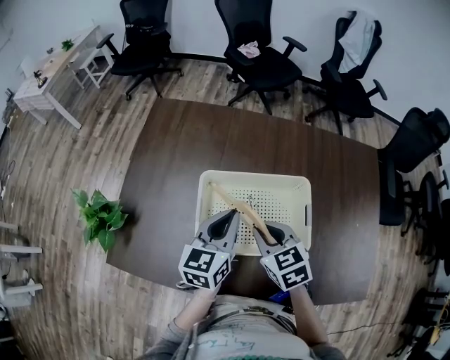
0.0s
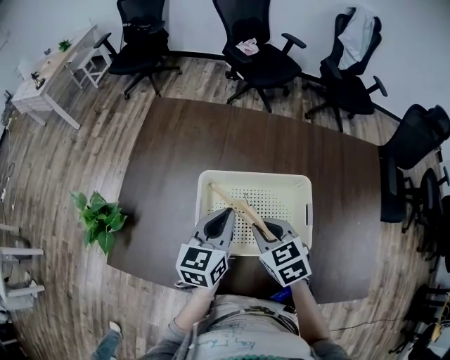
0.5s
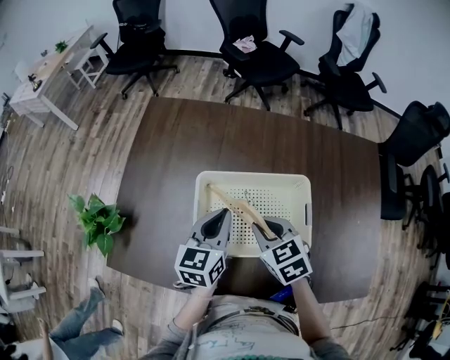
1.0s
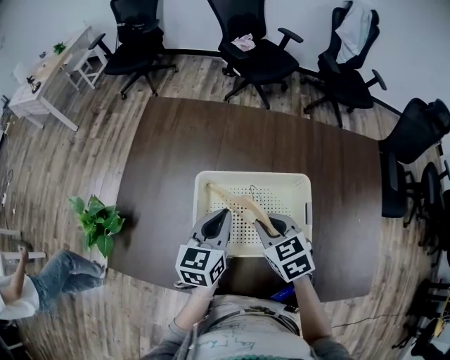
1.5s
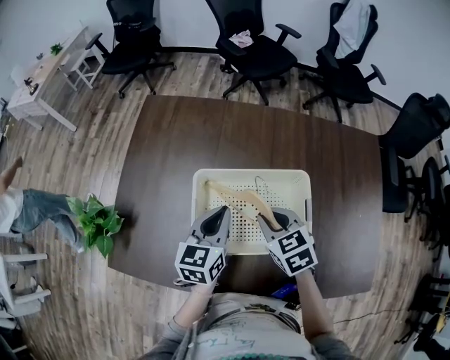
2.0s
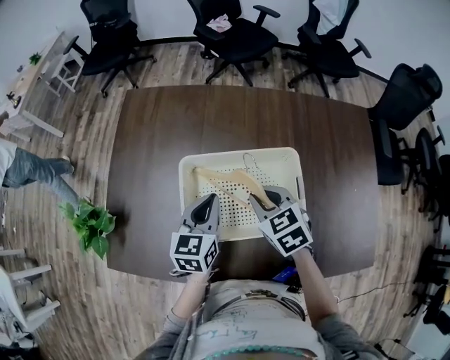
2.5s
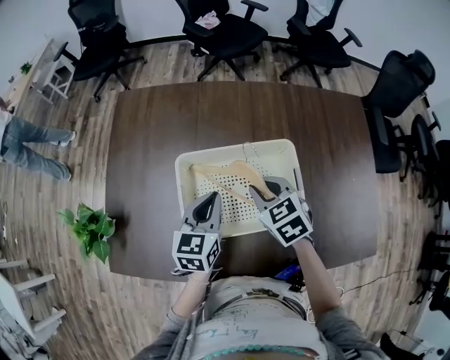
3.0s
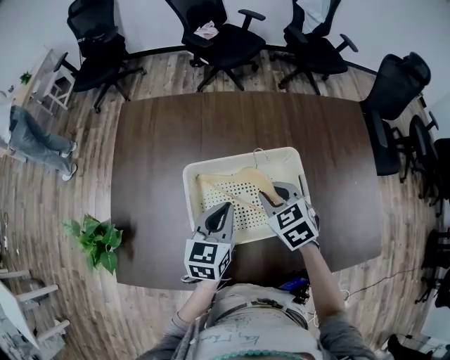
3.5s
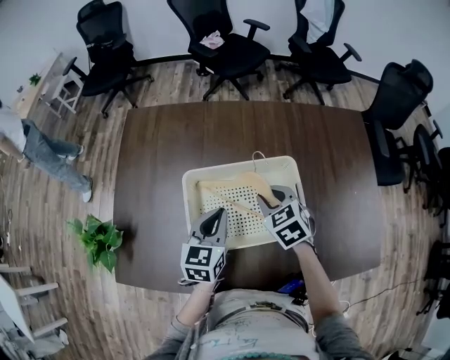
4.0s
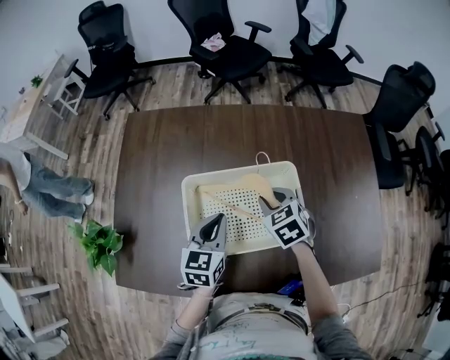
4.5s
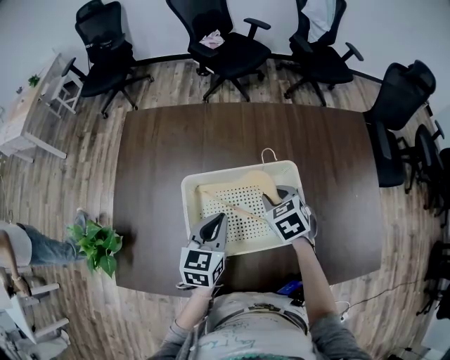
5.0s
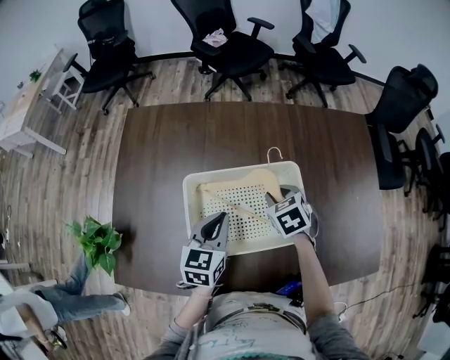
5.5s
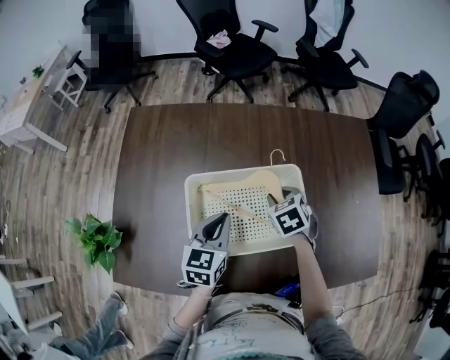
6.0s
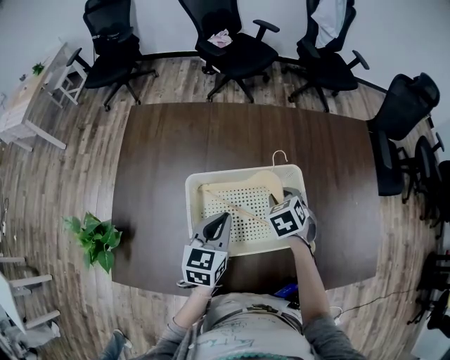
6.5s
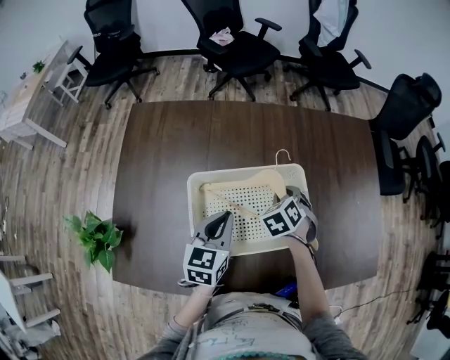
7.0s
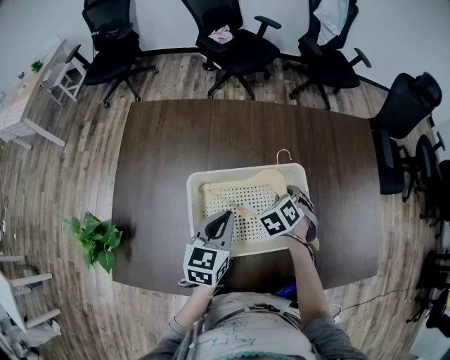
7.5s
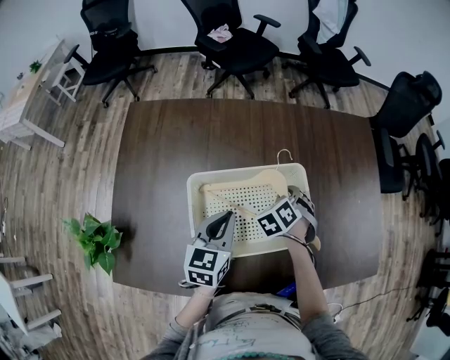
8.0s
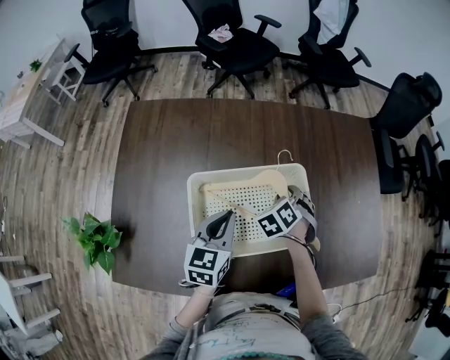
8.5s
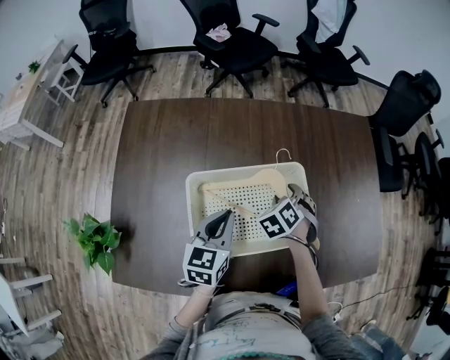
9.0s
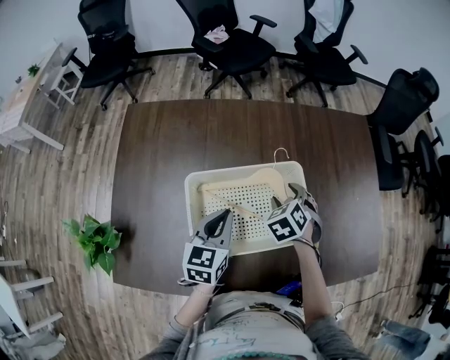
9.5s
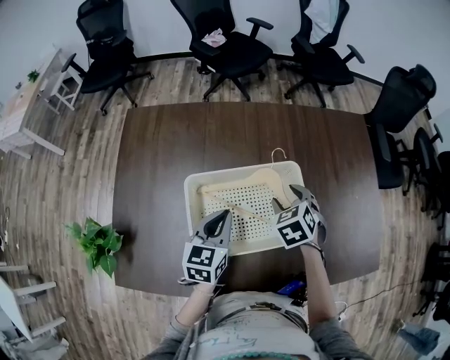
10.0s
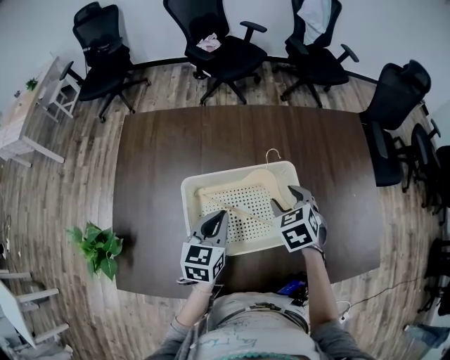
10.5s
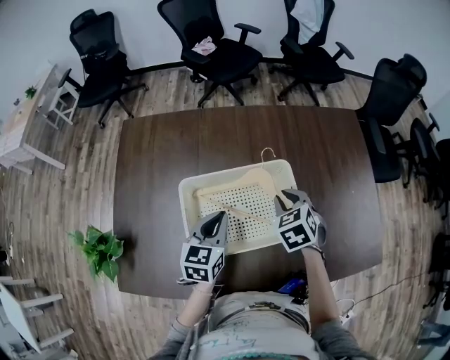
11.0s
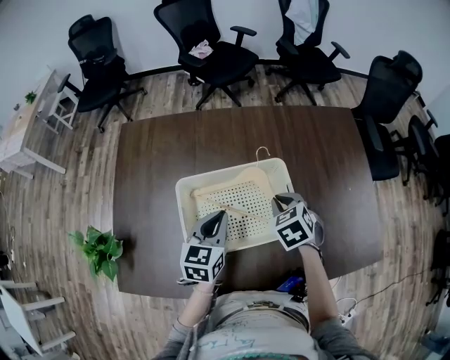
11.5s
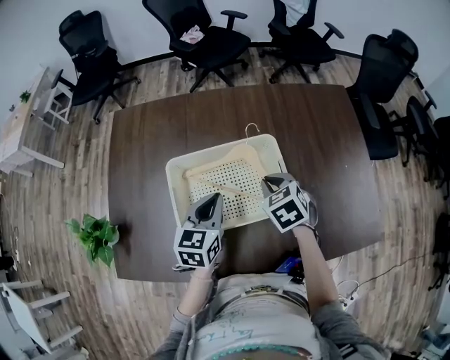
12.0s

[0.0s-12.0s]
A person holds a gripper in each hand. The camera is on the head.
0.0s to 2.0s: The grippers make only small movements.
2.0s to 4.0s: The grippers make only small movements.
4.0s to 6.0s: The right gripper ends up approximately 5 cm from where it was.
6.0s to 8.0s: The right gripper rotates roughly 30 degrees.
8.0s to 10.0s: The right gripper moves upward, some 5 cm, swivels about 20 degrees, and opens.
10.0s to 12.0s: The right gripper changes place by some 5 cm, and closes up.

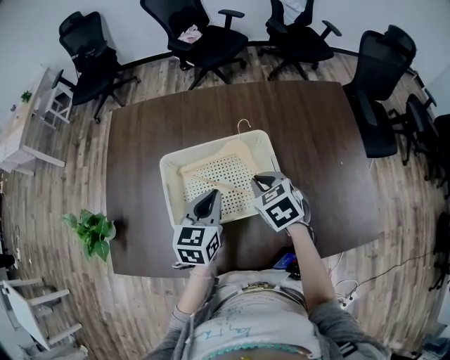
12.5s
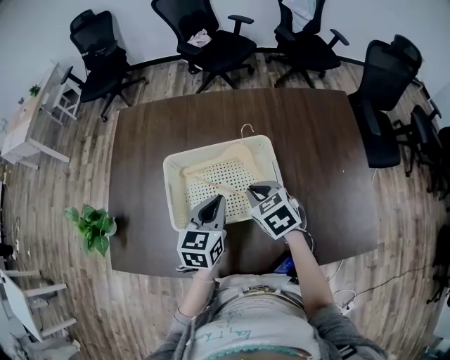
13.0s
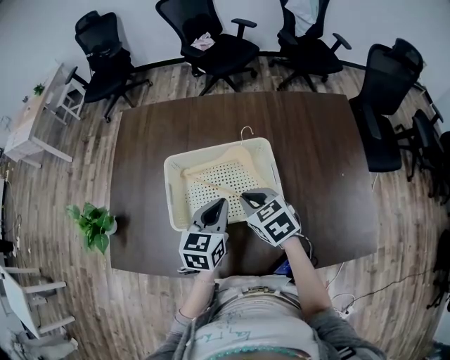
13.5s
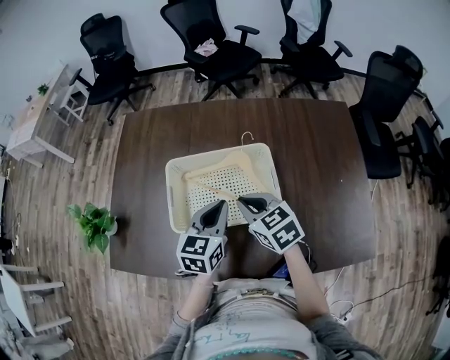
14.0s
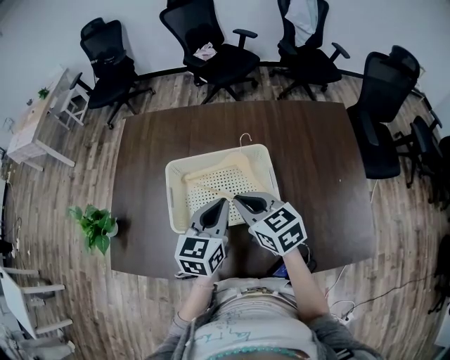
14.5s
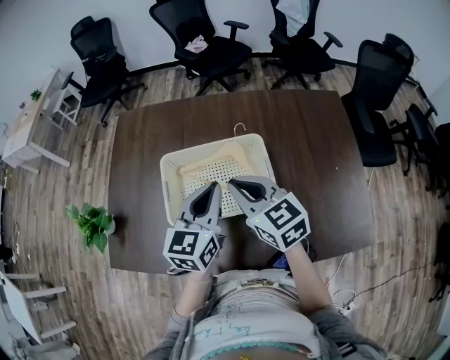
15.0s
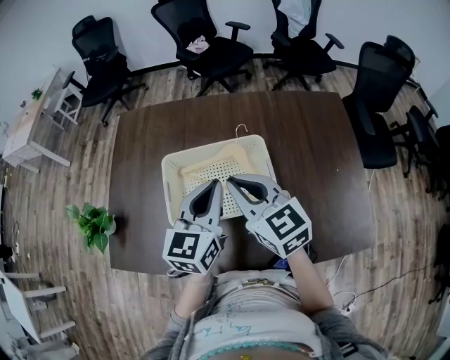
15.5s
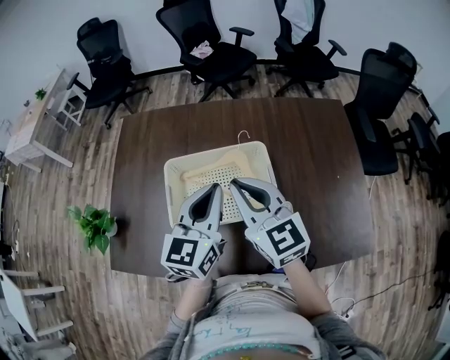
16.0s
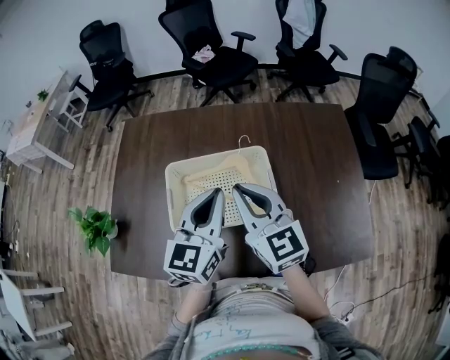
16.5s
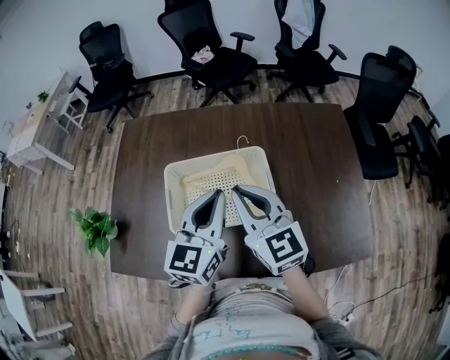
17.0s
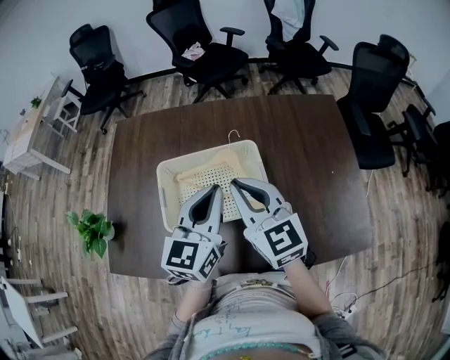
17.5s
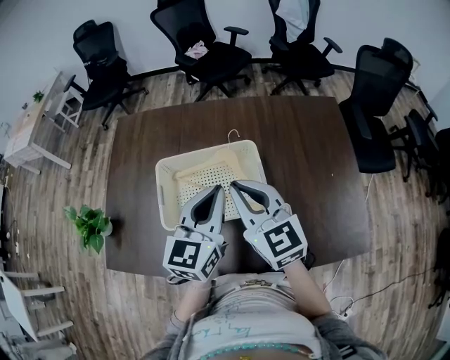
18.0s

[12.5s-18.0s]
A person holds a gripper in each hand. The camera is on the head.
12.5s to 14.5s: Both grippers travel together upward, approximately 5 cm. The right gripper changes its angle by approximately 30 degrees.
14.5s to 16.0s: The grippers both shift upward by some 10 cm. The right gripper swivels about 30 degrees.
16.0s to 18.0s: There are only small adjustments of the grippers.

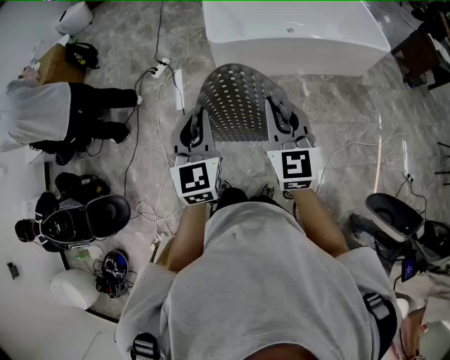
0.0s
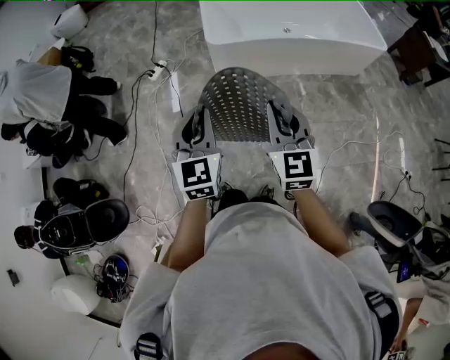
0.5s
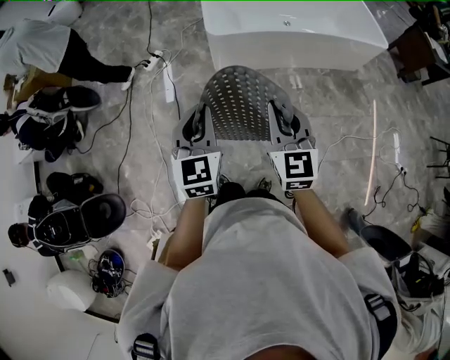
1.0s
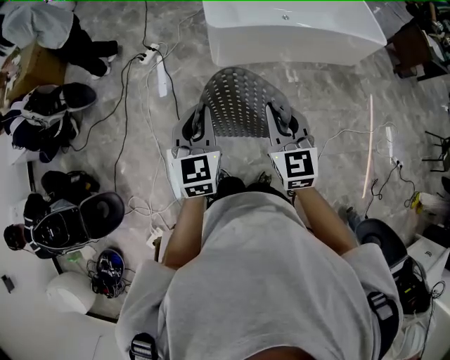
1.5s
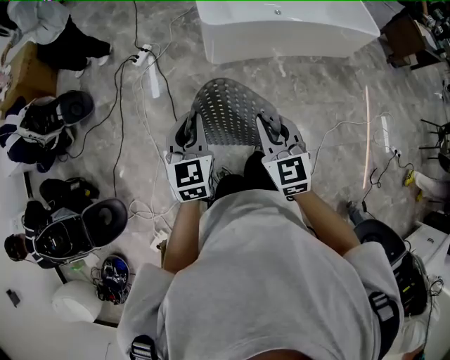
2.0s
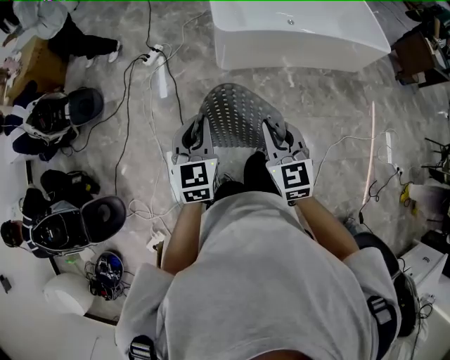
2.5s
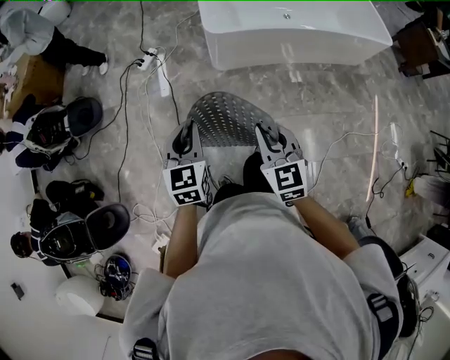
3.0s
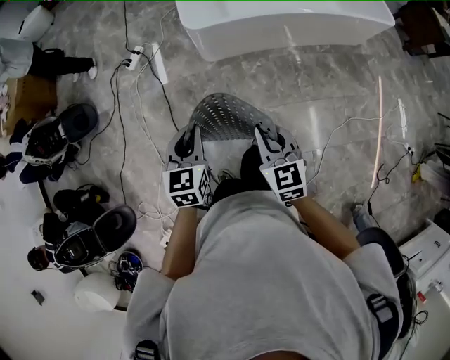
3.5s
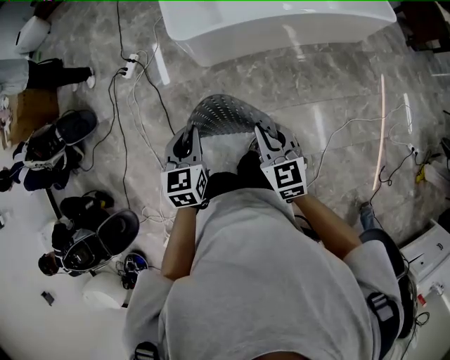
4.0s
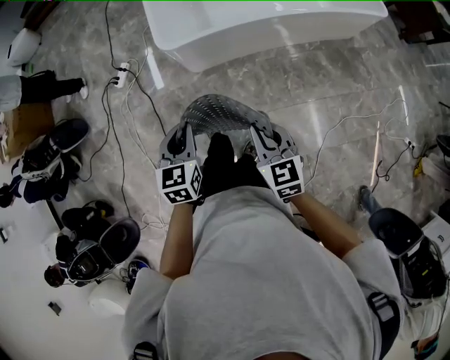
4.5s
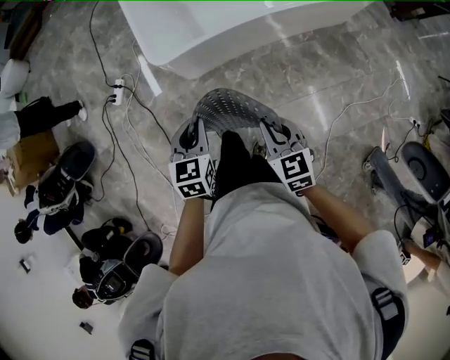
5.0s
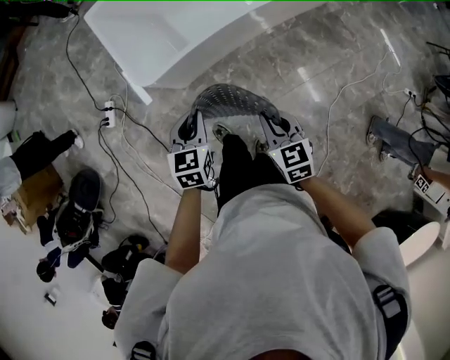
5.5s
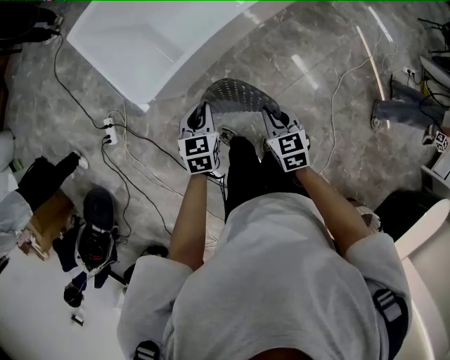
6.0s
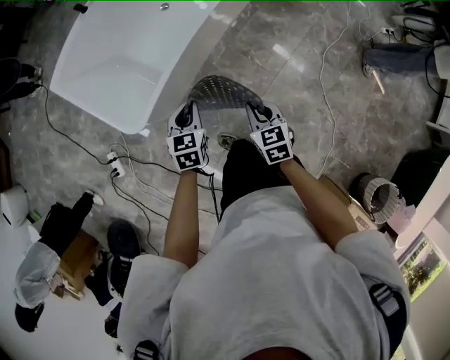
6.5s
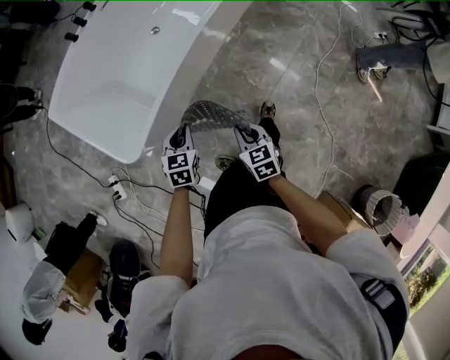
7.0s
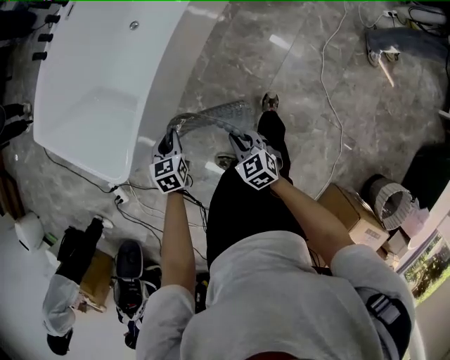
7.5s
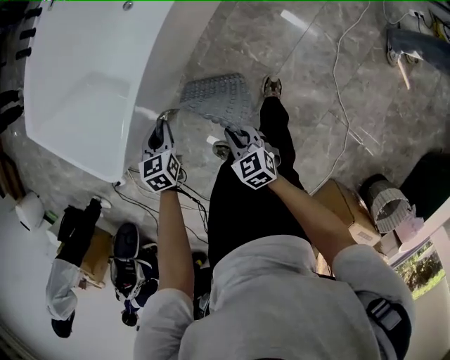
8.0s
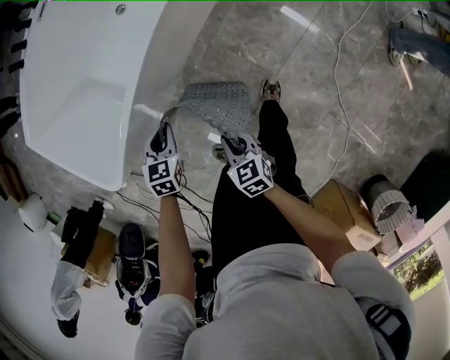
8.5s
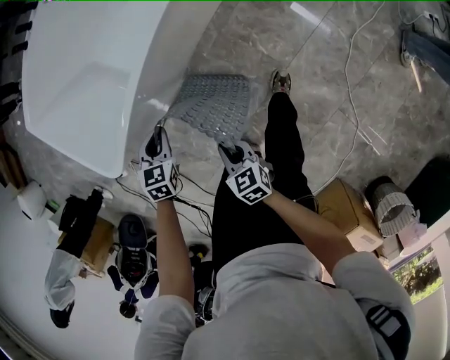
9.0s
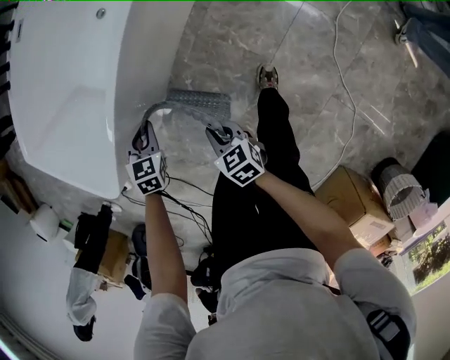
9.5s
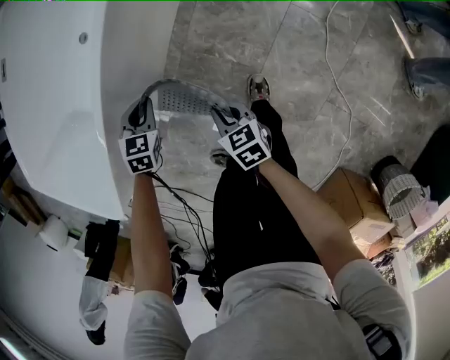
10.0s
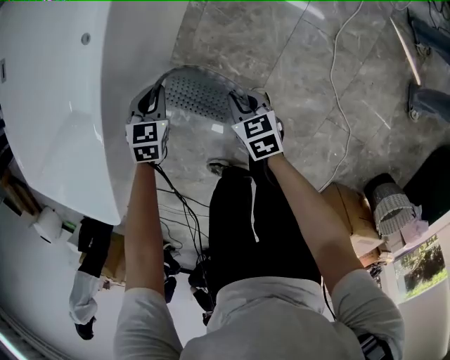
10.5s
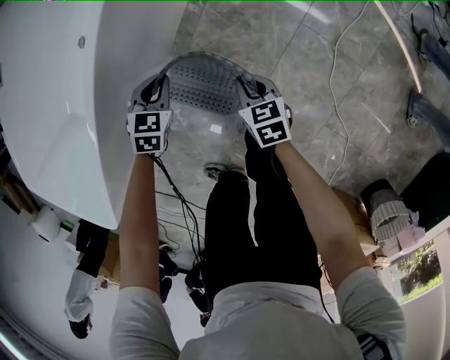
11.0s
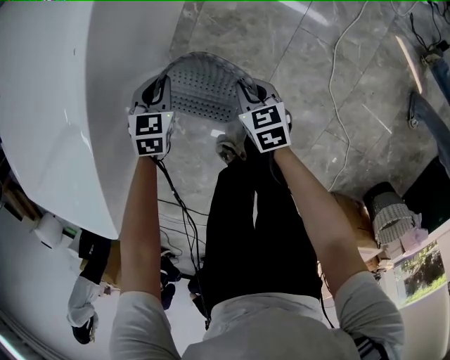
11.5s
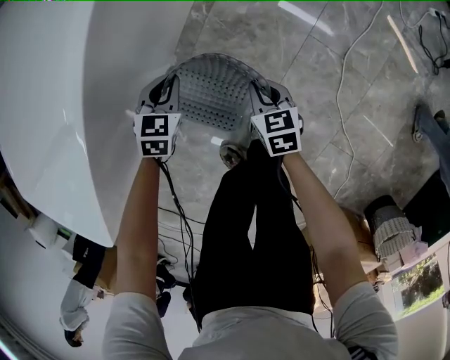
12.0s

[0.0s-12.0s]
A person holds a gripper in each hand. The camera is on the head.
0.0s to 2.0s: Both grippers move to the left and downward, approximately 15 cm.
2.0s to 4.0s: The grippers both shift to the right, forward and downward by about 25 cm.
4.0s to 6.0s: The left gripper moves about 35 cm, and turns by some 30 degrees. The right gripper changes place by roughly 25 cm, and changes its angle by approximately 30 degrees.
6.0s to 8.0s: The left gripper moves downward, forward and to the right, about 25 cm. Meanwhile the right gripper moves downward, about 20 cm.
8.0s to 10.0s: The left gripper goes left and right, roughly 20 cm each way, reversing 2 times, and swivels roughly 30 degrees. The right gripper travels to the right, downward and forward by about 20 cm, and turns by approximately 20 degrees.
10.0s to 12.0s: The right gripper heads to the right, forward and downward, covering some 25 cm; the left gripper travels to the right, downward and forward by some 20 cm.
